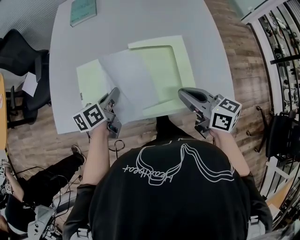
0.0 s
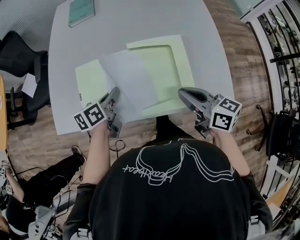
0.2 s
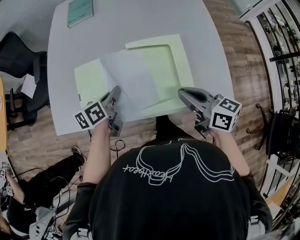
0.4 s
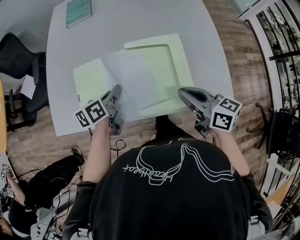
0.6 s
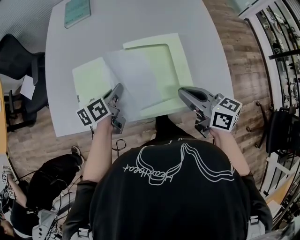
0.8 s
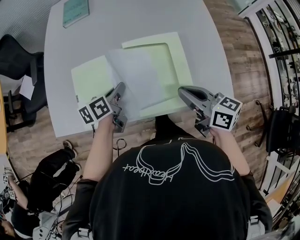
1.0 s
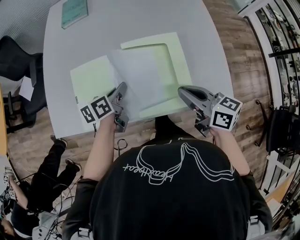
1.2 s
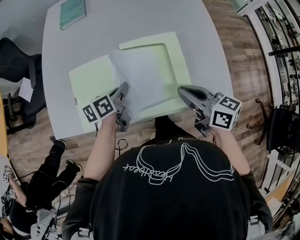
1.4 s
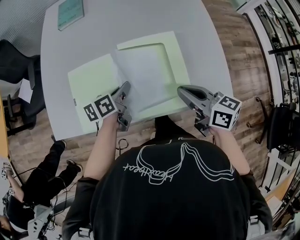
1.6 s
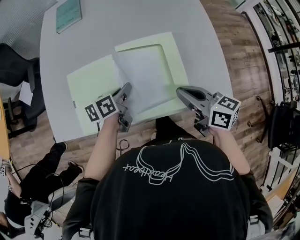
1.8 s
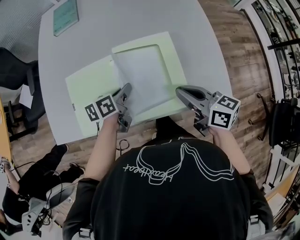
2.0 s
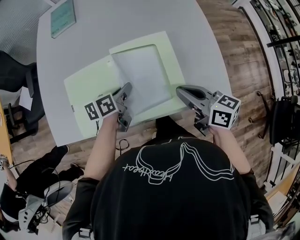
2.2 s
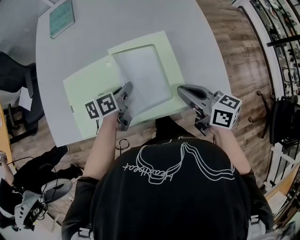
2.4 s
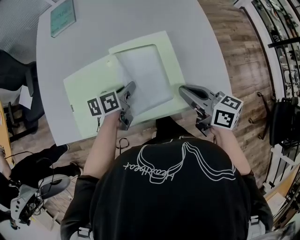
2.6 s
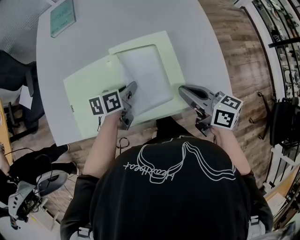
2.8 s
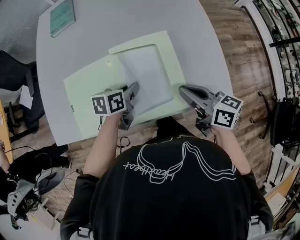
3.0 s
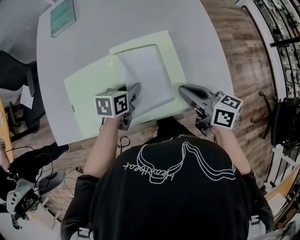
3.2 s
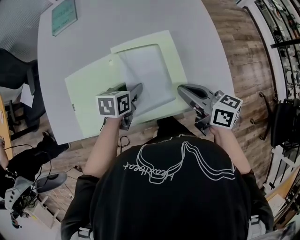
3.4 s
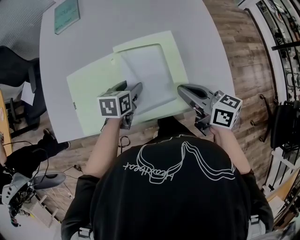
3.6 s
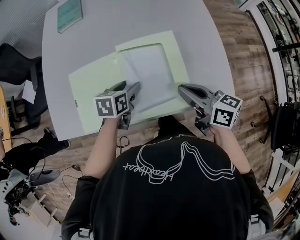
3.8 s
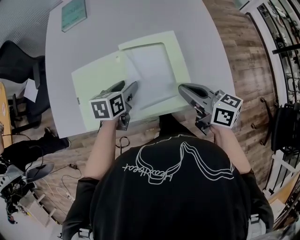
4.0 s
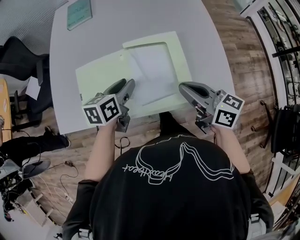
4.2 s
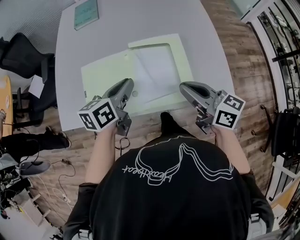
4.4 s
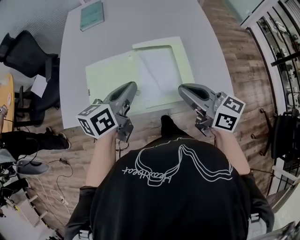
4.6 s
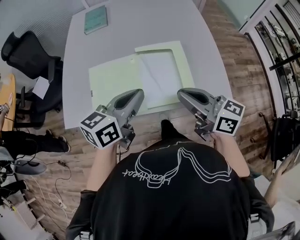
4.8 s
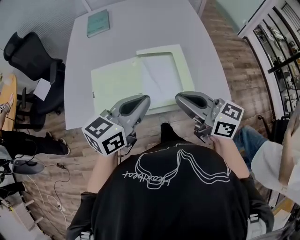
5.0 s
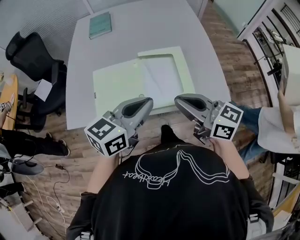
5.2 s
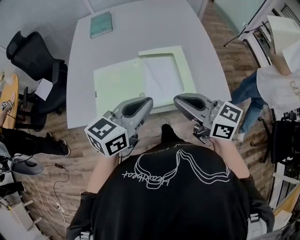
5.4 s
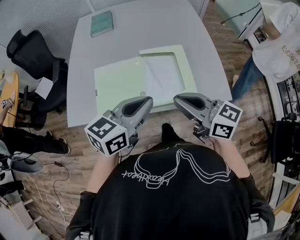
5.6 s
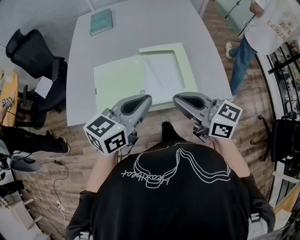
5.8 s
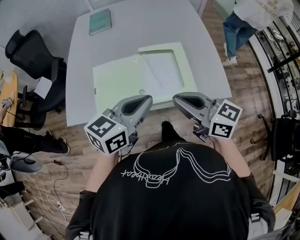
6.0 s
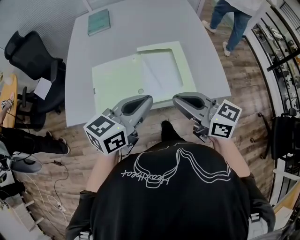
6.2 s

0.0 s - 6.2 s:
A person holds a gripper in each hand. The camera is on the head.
0.0 s - 1.6 s: The left gripper goes approximately 5 cm to the right.
1.6 s - 3.2 s: The left gripper travels to the right by some 5 cm, and swivels some 30 degrees.
3.2 s - 4.6 s: The left gripper heads upward, covering roughly 20 cm, turns by roughly 30 degrees, and opens, then closes once more, while the right gripper shifts about 10 cm upward and backward.
4.6 s - 6.2 s: The left gripper shifts about 15 cm backward and upward, and turns by about 20 degrees; the right gripper is displaced backward by some 10 cm.

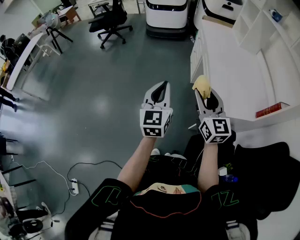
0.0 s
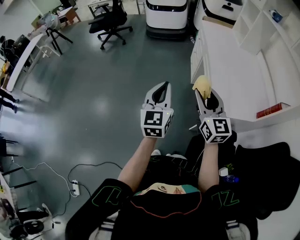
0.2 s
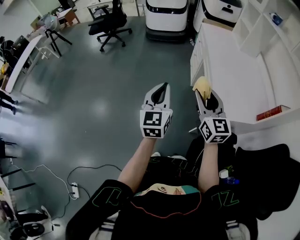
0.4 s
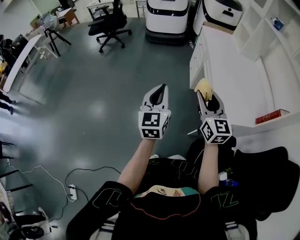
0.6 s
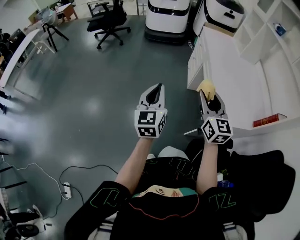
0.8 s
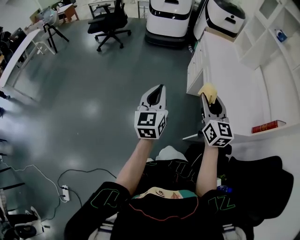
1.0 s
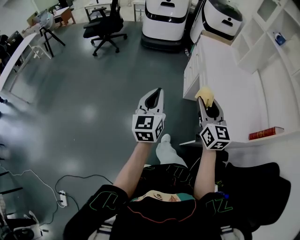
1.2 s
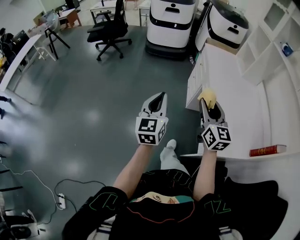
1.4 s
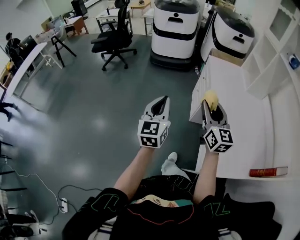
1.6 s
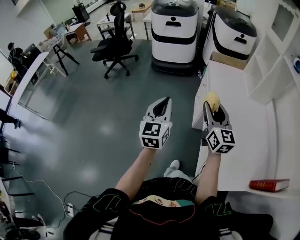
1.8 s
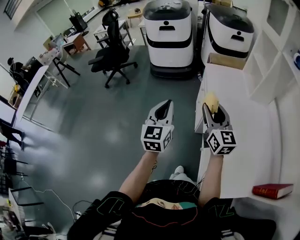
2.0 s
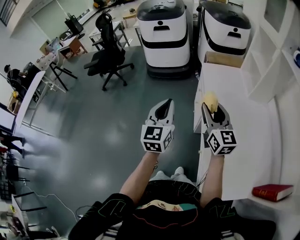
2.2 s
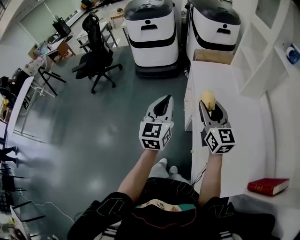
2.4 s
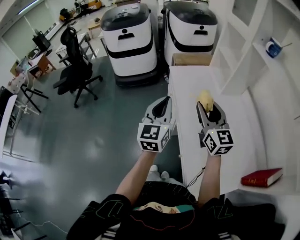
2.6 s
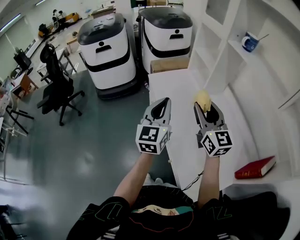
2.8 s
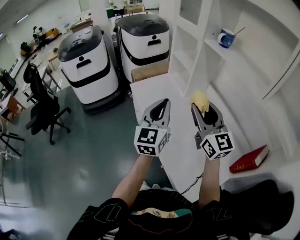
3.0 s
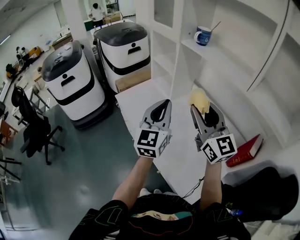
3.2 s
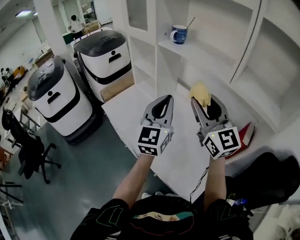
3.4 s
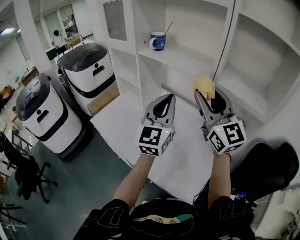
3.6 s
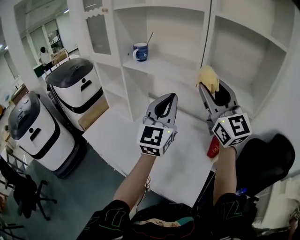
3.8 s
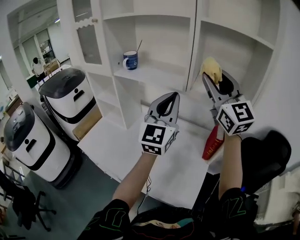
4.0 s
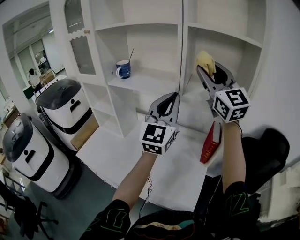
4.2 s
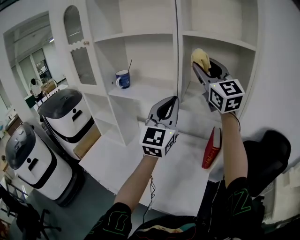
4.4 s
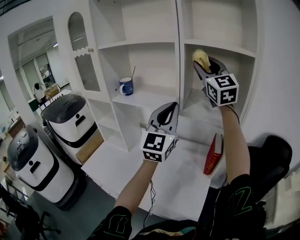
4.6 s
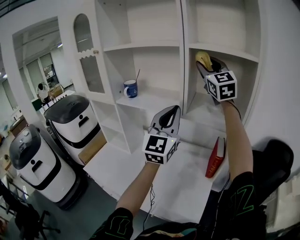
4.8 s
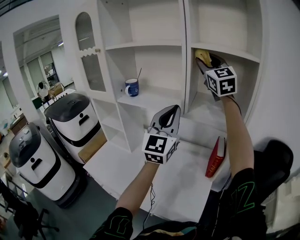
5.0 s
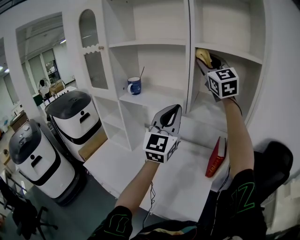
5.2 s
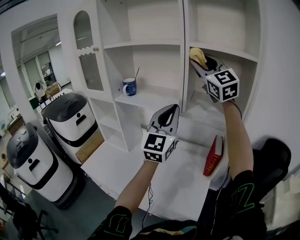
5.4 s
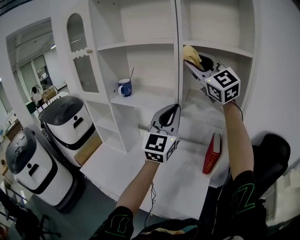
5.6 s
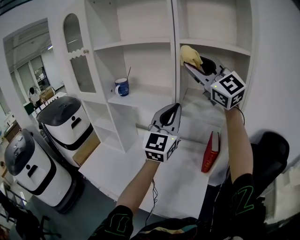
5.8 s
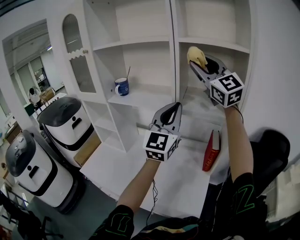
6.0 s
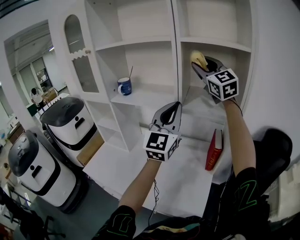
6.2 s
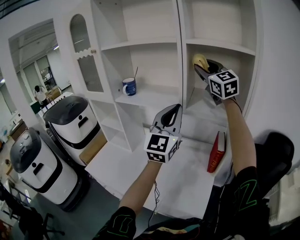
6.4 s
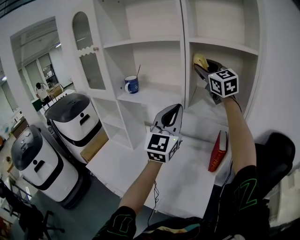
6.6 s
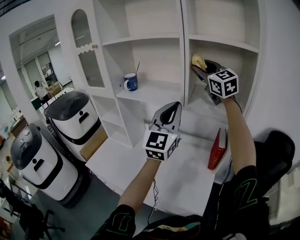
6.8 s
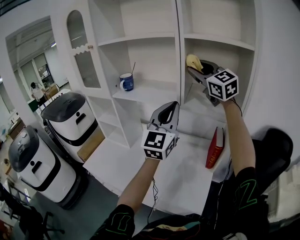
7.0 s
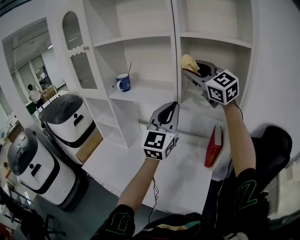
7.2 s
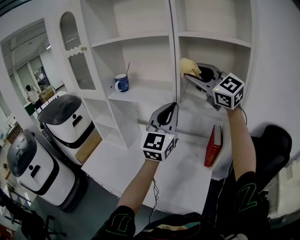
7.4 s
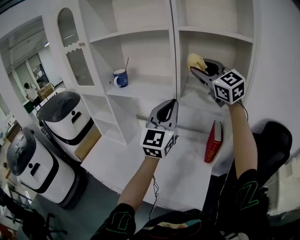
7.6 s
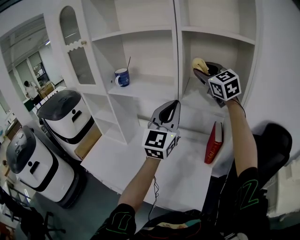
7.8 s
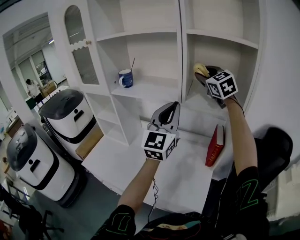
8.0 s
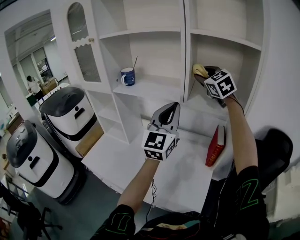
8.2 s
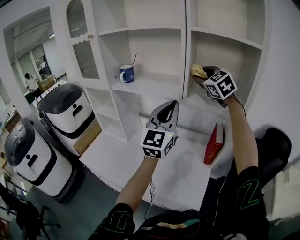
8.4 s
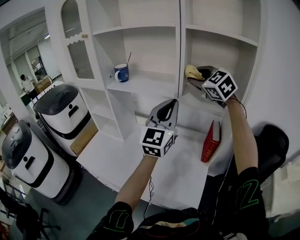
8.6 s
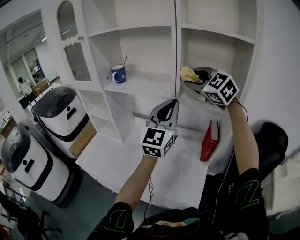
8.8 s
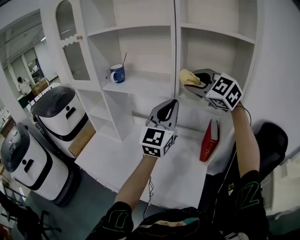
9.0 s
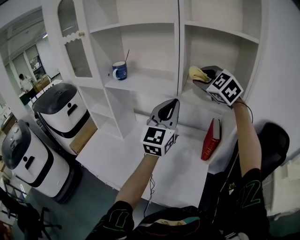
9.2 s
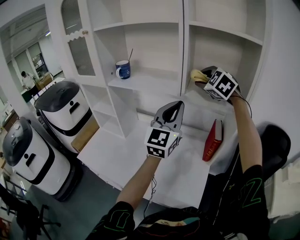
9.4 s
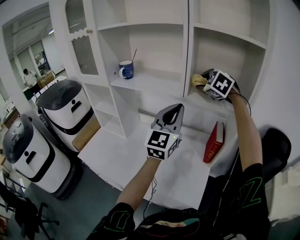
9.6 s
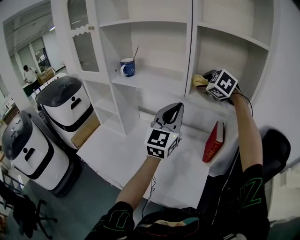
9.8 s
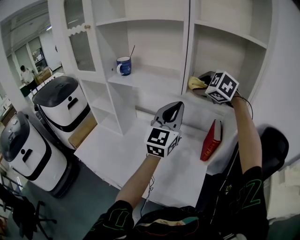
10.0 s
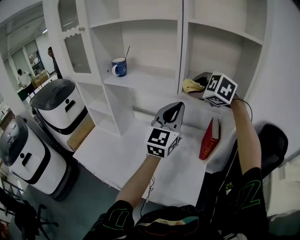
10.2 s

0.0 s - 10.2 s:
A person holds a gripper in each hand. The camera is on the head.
0.0 s - 1.4 s: The two grippers go roughly 20 cm forward.
1.4 s - 3.0 s: The left gripper changes place by approximately 50 cm, and swivels roughly 40 degrees. Meanwhile the right gripper ends up some 40 cm from where it was, and rotates approximately 20 degrees.
3.0 s - 4.4 s: The right gripper changes place by some 40 cm, and changes its angle by some 50 degrees, while the left gripper moves approximately 35 cm, and turns by some 50 degrees.
4.4 s - 5.8 s: The right gripper reaches approximately 5 cm forward, then returns.
5.8 s - 7.2 s: The right gripper is displaced downward by about 5 cm.
7.2 s - 8.8 s: The right gripper shifts approximately 10 cm downward, reaches about 10 cm forward, then returns, and turns by about 30 degrees.
8.8 s - 10.2 s: The right gripper goes about 5 cm downward, goes forward and returns, some 5 cm each way, and rotates some 20 degrees.

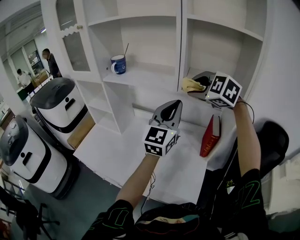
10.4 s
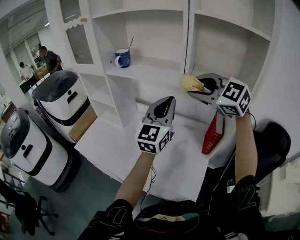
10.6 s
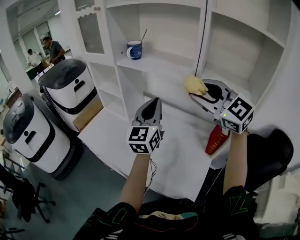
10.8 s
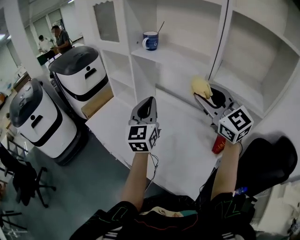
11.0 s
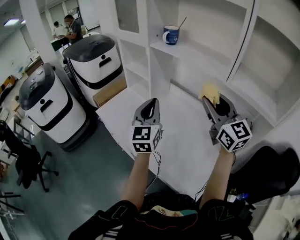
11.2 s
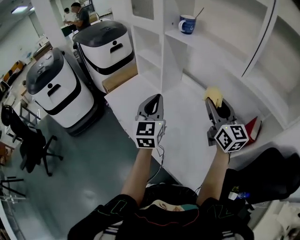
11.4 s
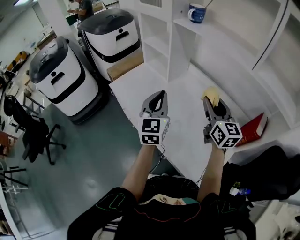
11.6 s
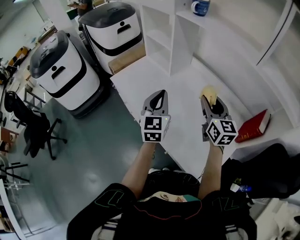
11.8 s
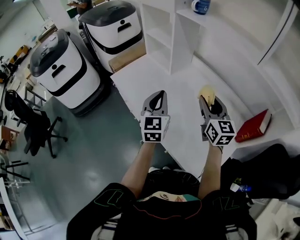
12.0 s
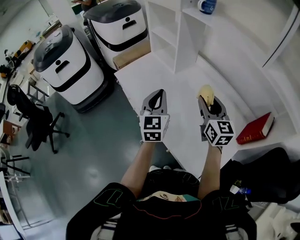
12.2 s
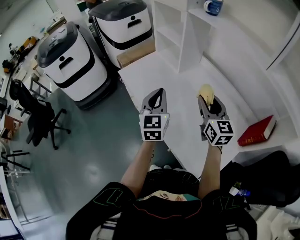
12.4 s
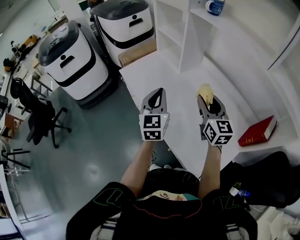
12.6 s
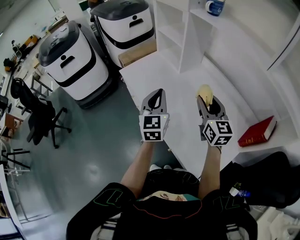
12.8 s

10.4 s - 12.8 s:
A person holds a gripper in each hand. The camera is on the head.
10.4 s - 11.6 s: The left gripper shifts roughly 30 cm to the left and downward, and swivels approximately 50 degrees; the right gripper heads downward and to the left, covering some 20 cm, and rolls clockwise, seen from behind, by approximately 50 degrees.
11.6 s - 12.8 s: The two grippers go about 5 cm to the left.

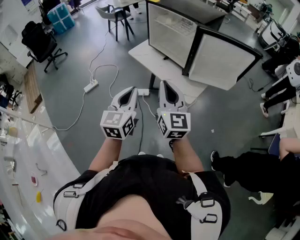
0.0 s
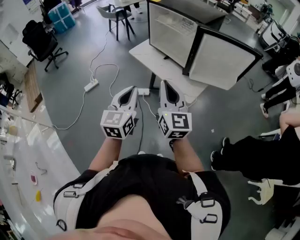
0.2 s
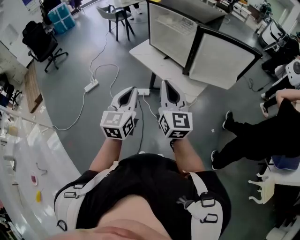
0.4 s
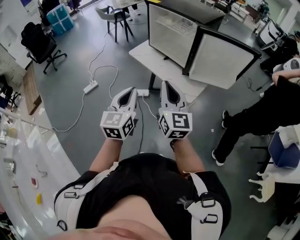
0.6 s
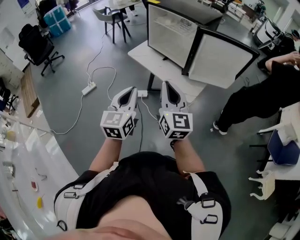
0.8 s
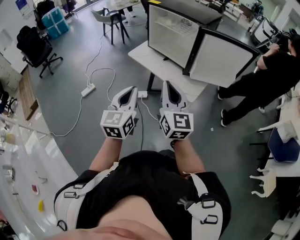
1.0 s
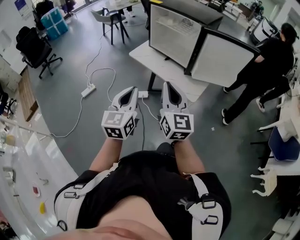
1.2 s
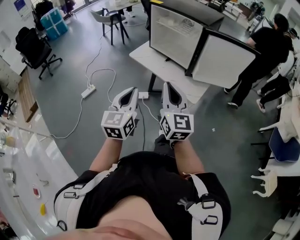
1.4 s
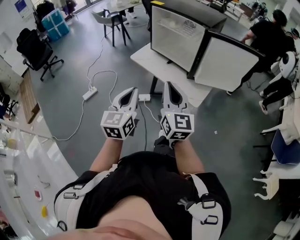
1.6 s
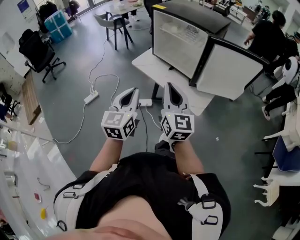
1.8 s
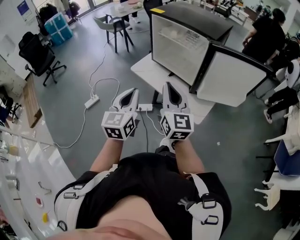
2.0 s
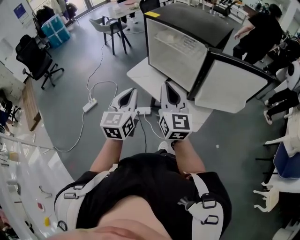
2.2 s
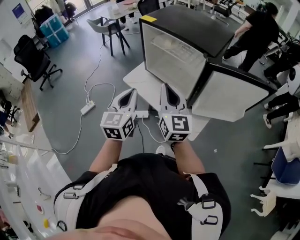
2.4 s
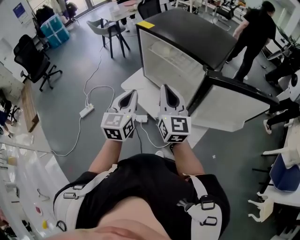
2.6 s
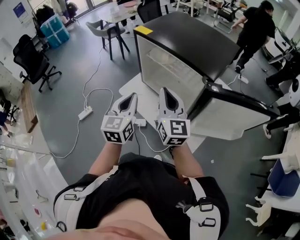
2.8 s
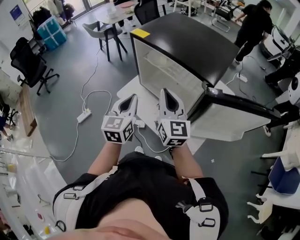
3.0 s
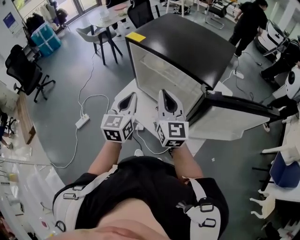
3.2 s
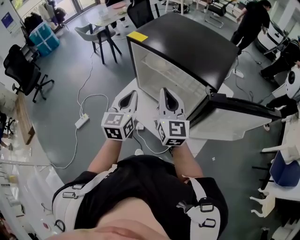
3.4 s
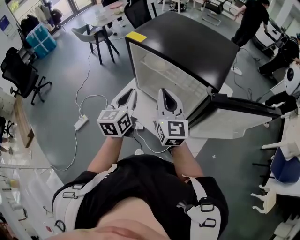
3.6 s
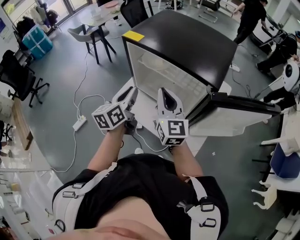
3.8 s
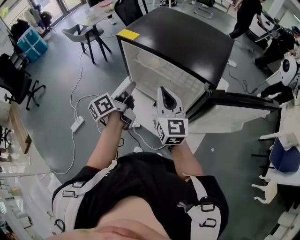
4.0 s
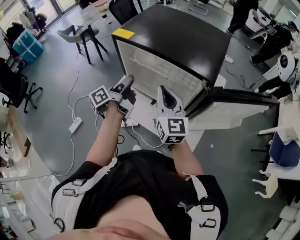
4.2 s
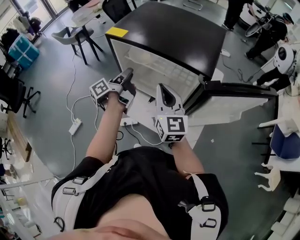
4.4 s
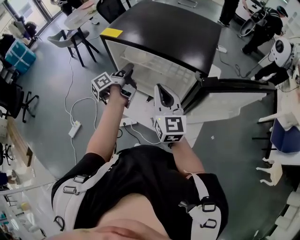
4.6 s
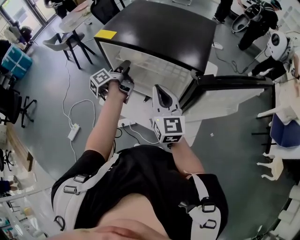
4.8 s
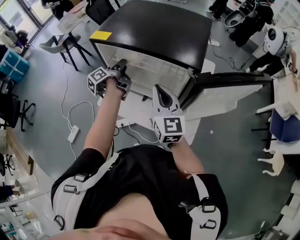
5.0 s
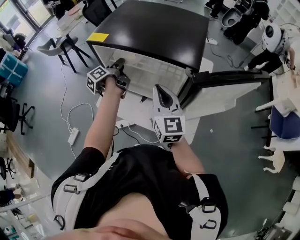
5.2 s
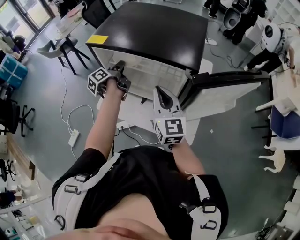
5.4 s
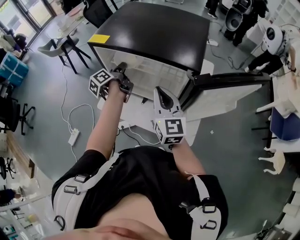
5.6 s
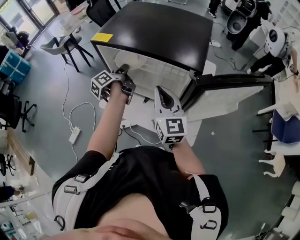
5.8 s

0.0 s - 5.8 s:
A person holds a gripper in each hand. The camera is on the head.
0.0 s - 1.4 s: The left gripper heads to the left, covering about 5 cm.
1.4 s - 2.8 s: Both grippers move forward, about 35 cm.
2.8 s - 4.4 s: The right gripper heads forward, covering about 5 cm; the left gripper shifts about 20 cm forward, twists about 80 degrees counterclockwise, seen from behind, and opens up.
4.4 s - 5.8 s: The left gripper travels forward by about 5 cm.
